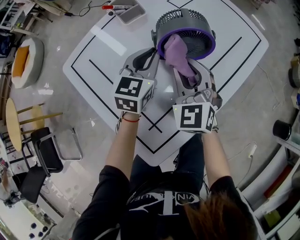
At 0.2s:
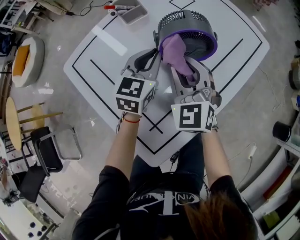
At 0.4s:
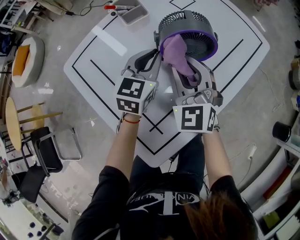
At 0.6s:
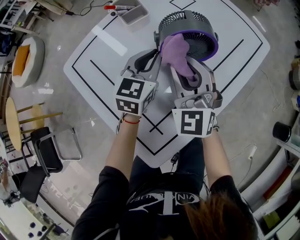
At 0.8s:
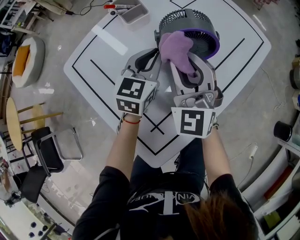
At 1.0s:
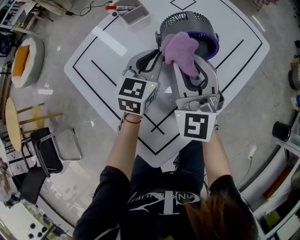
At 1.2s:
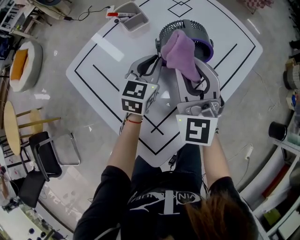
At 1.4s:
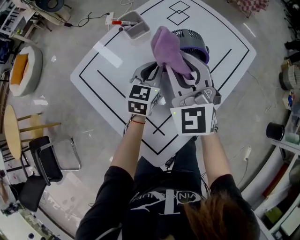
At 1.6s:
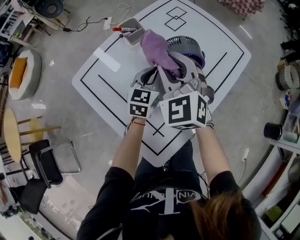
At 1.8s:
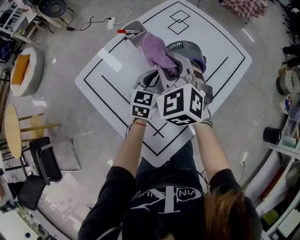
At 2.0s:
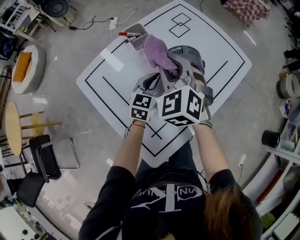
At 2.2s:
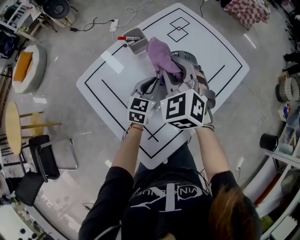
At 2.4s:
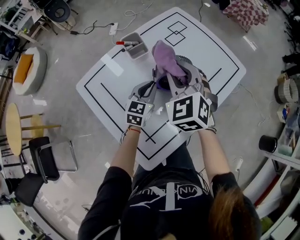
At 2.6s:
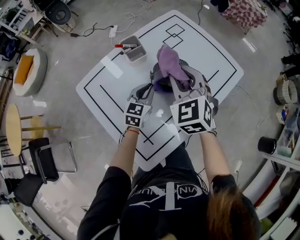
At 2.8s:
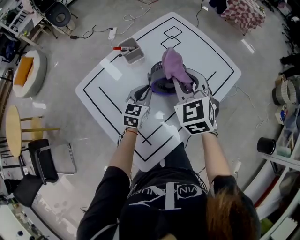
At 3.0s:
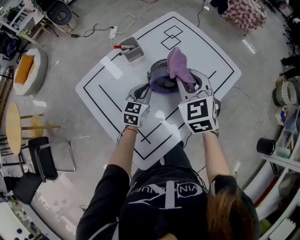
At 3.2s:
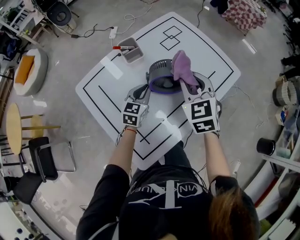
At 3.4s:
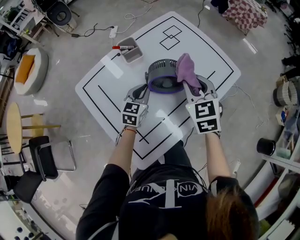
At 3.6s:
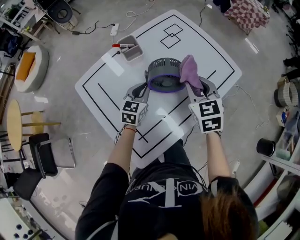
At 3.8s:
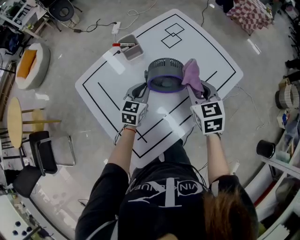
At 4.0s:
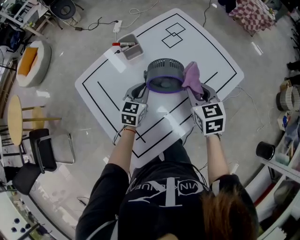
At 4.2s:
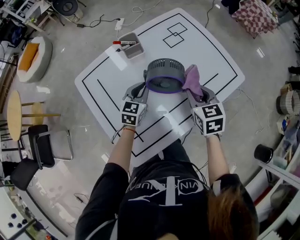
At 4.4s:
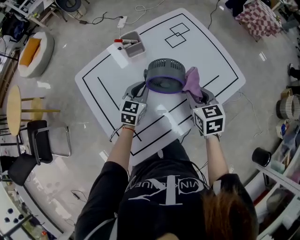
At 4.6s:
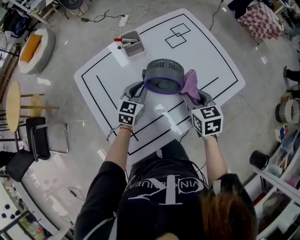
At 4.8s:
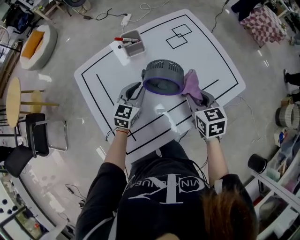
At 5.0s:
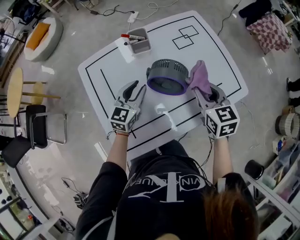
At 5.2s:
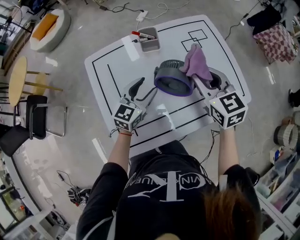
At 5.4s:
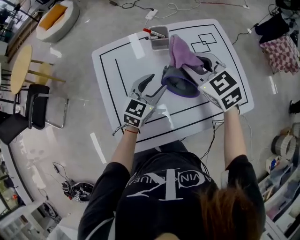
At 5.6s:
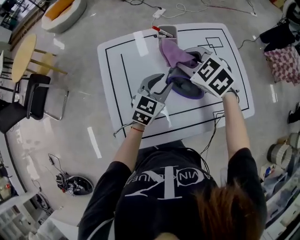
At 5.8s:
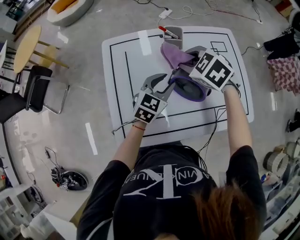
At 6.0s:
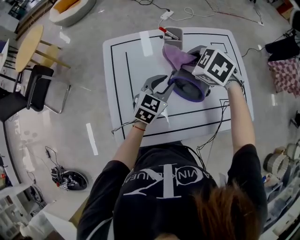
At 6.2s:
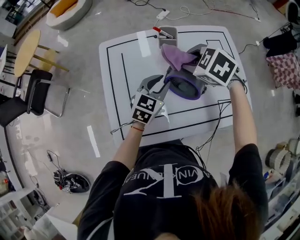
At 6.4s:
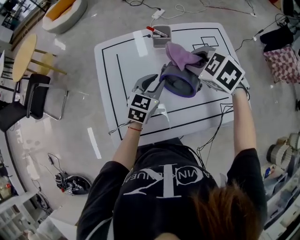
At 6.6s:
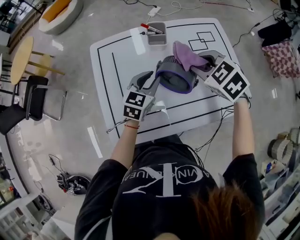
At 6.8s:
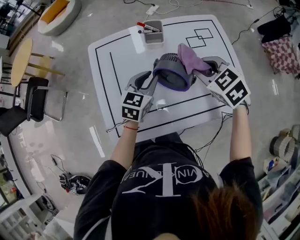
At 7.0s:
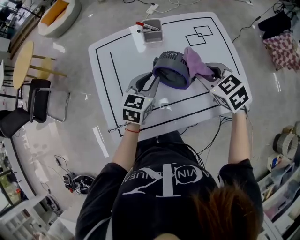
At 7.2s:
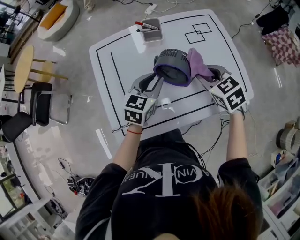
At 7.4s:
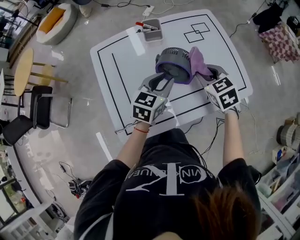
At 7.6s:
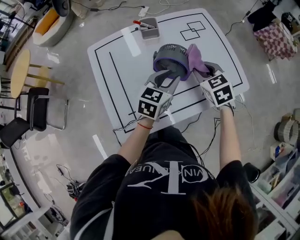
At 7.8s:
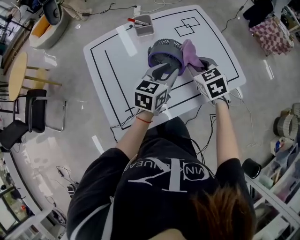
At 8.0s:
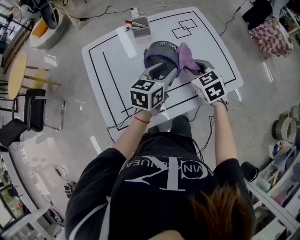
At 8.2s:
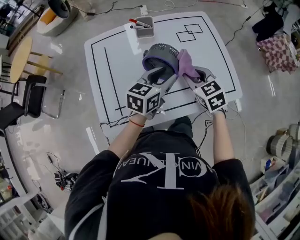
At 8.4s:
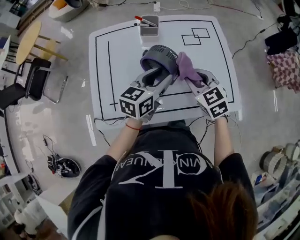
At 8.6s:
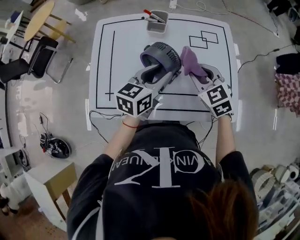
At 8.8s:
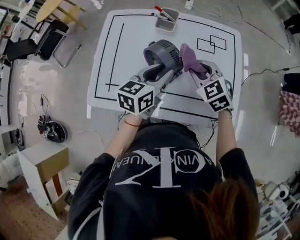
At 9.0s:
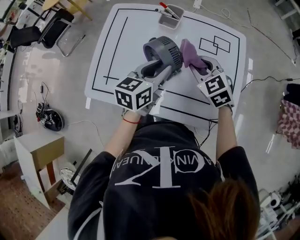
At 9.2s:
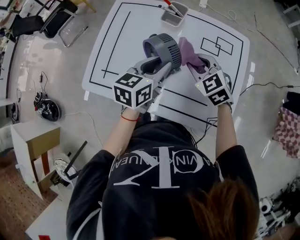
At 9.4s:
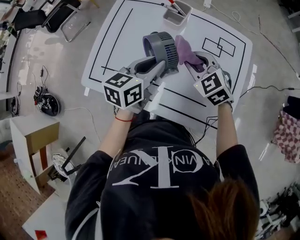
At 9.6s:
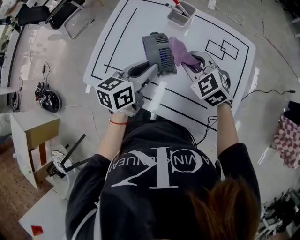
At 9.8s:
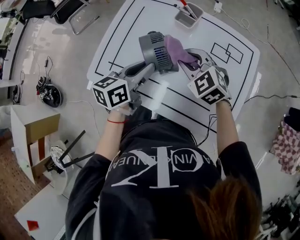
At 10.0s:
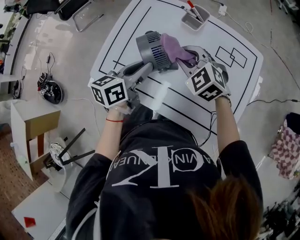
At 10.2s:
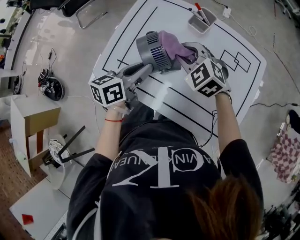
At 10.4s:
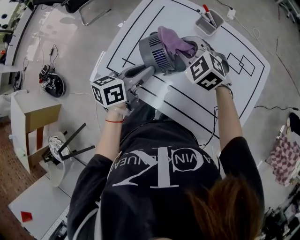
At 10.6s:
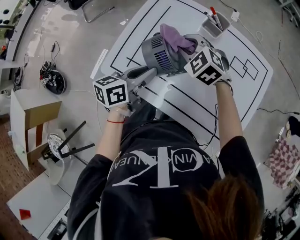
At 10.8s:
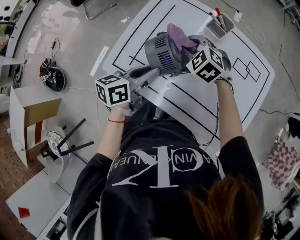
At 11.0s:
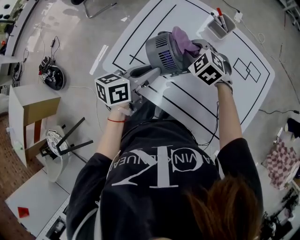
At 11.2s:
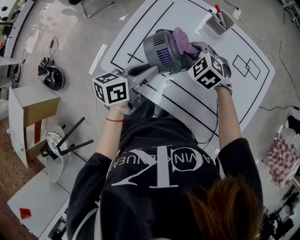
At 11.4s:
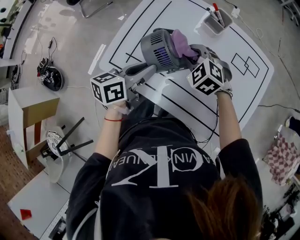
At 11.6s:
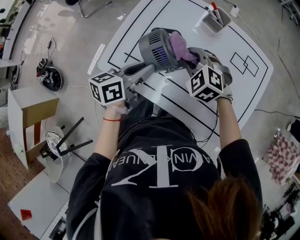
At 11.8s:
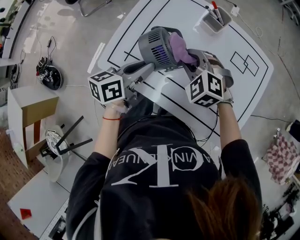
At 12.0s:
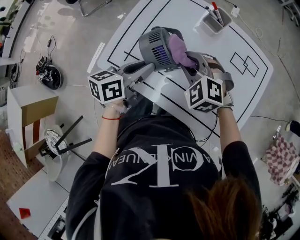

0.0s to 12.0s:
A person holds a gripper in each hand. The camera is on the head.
0.0s to 1.6s: The right gripper heads upward and to the left, covering roughly 15 cm.
1.6s to 3.0s: The right gripper heads to the right, covering about 10 cm.
3.0s to 4.4s: The right gripper goes roughly 10 cm downward and to the right, and rotates approximately 30 degrees.
4.4s to 6.0s: The right gripper ends up some 20 cm from where it was, and turns by roughly 70 degrees. The left gripper shifts approximately 5 cm upward, and opens its fingers.
6.0s to 7.6s: The left gripper is displaced to the right and backward by approximately 10 cm, while the right gripper heads to the right and backward, covering roughly 15 cm, and turns by some 40 degrees.
7.6s to 9.0s: The left gripper ends up some 5 cm from where it was, and changes its angle by some 40 degrees. The right gripper moves some 10 cm, and rotates roughly 40 degrees.
9.0s to 10.4s: The grippers both shift to the left by some 15 cm. The right gripper swivels approximately 30 degrees. The left gripper turns by some 20 degrees.
10.4s to 12.0s: The right gripper heads backward, covering some 5 cm.

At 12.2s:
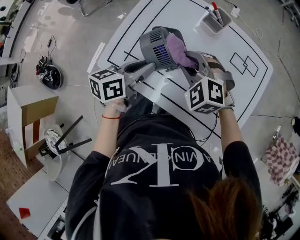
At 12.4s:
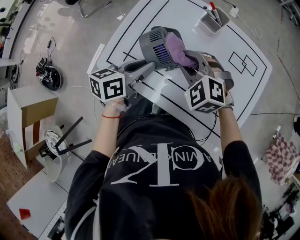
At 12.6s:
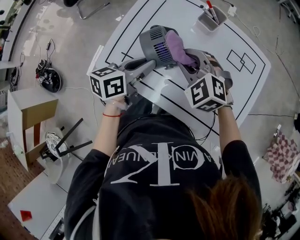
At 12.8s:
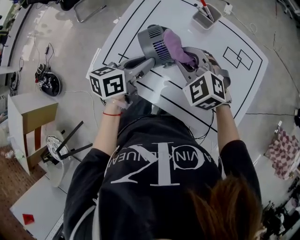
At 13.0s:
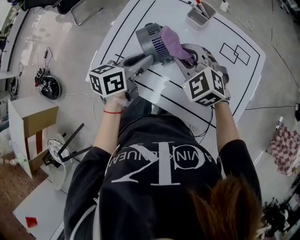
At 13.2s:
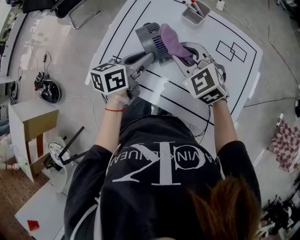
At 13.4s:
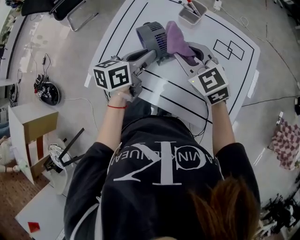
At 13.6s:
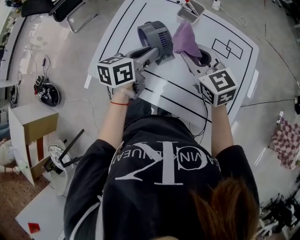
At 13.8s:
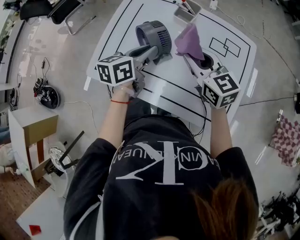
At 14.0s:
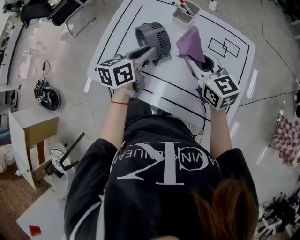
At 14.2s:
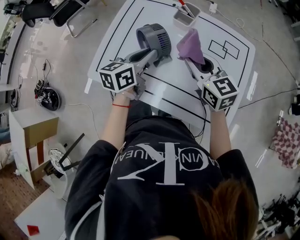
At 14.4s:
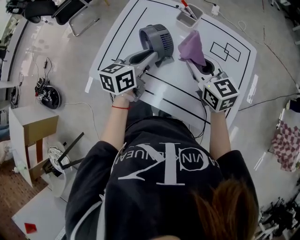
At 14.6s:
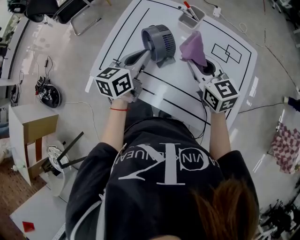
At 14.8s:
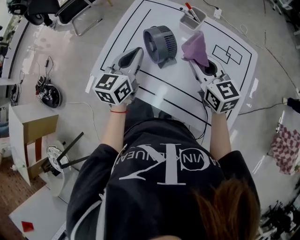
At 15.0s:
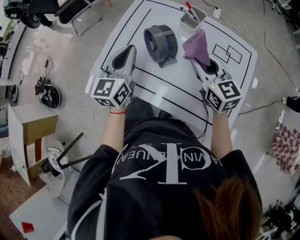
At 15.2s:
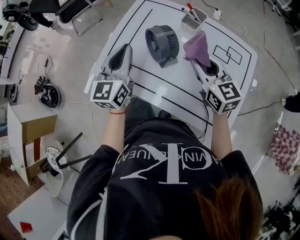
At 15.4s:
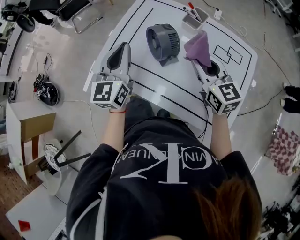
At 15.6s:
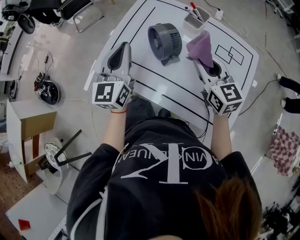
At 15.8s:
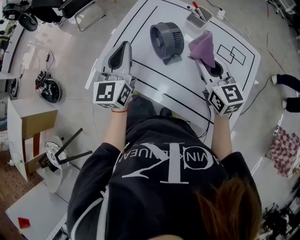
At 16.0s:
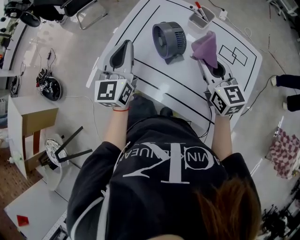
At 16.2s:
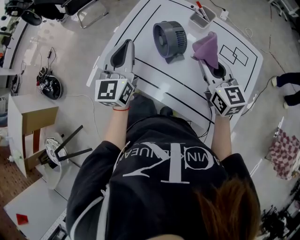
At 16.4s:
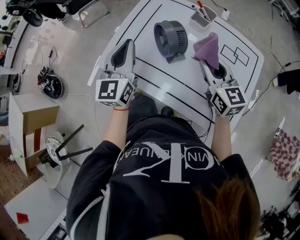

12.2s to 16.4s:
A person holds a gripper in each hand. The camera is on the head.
12.2s to 13.6s: The right gripper is displaced to the right and upward by about 10 cm, and twists about 50 degrees clockwise, seen from behind. Meanwhile the left gripper shifts roughly 10 cm to the right.
13.6s to 15.0s: The left gripper goes about 10 cm to the left and upward, and swivels about 40 degrees.
15.0s to 16.4s: There are only small adjustments of the grippers.

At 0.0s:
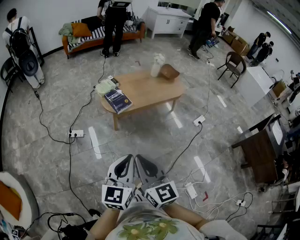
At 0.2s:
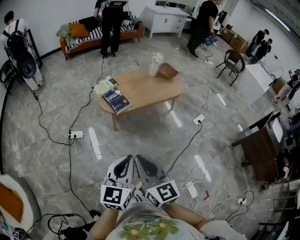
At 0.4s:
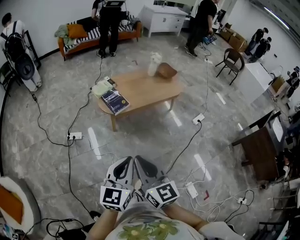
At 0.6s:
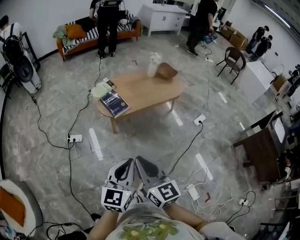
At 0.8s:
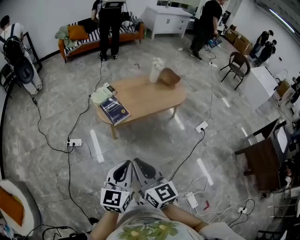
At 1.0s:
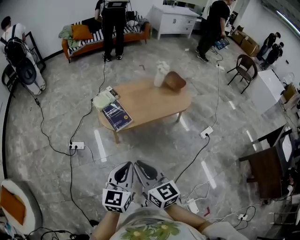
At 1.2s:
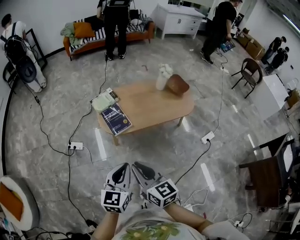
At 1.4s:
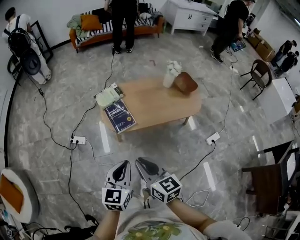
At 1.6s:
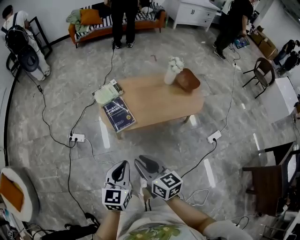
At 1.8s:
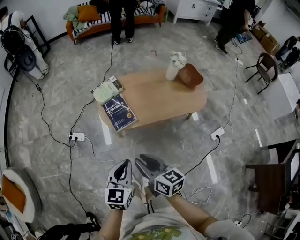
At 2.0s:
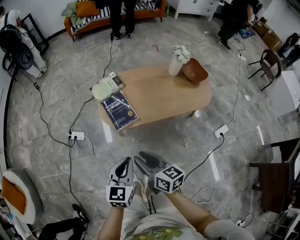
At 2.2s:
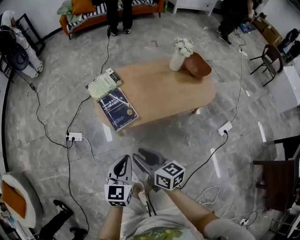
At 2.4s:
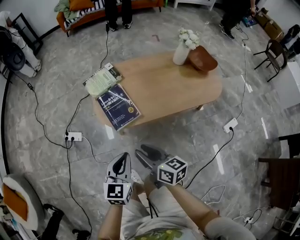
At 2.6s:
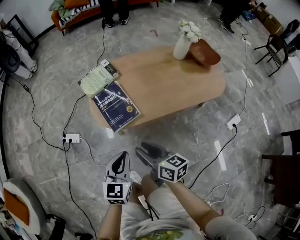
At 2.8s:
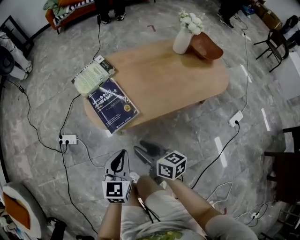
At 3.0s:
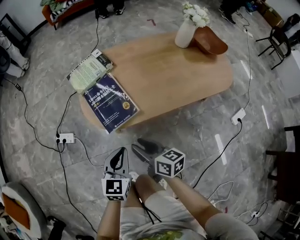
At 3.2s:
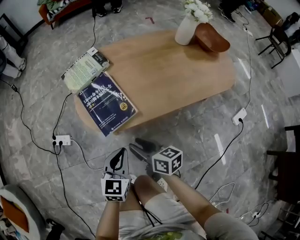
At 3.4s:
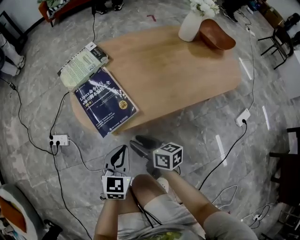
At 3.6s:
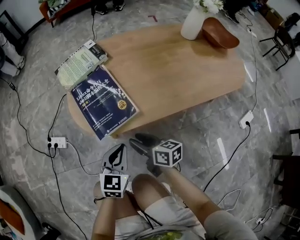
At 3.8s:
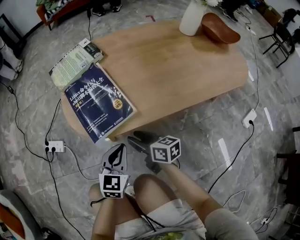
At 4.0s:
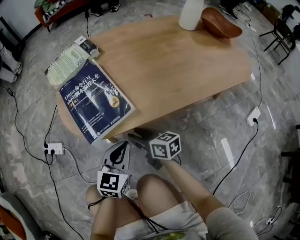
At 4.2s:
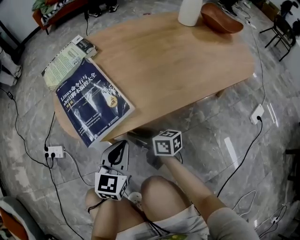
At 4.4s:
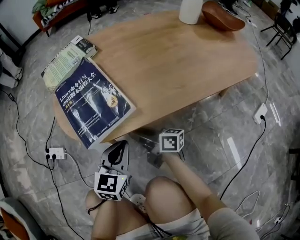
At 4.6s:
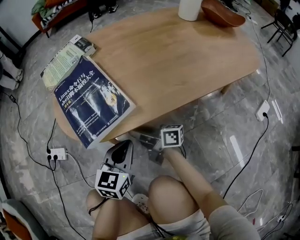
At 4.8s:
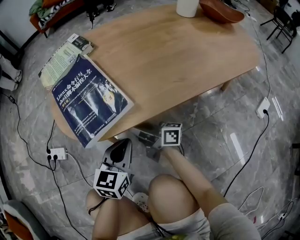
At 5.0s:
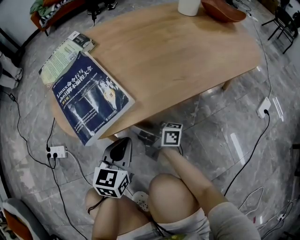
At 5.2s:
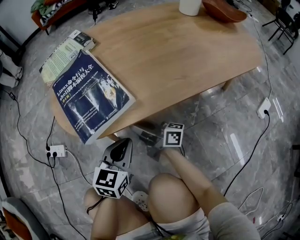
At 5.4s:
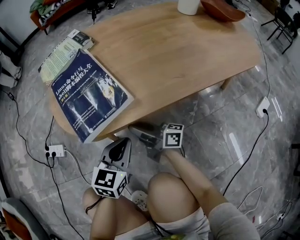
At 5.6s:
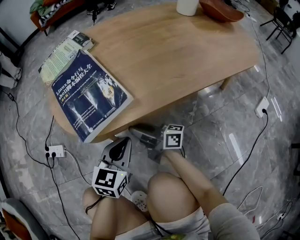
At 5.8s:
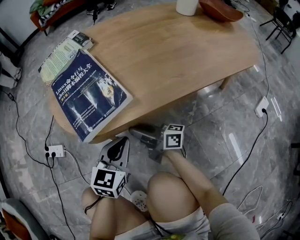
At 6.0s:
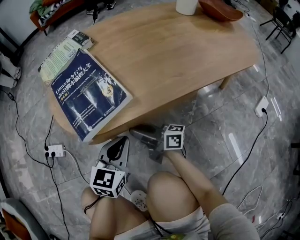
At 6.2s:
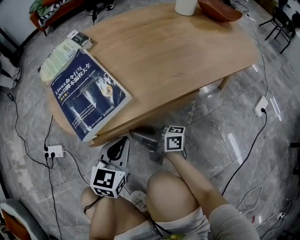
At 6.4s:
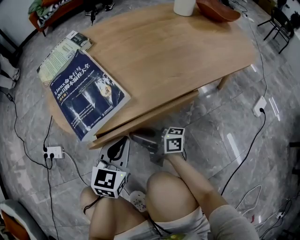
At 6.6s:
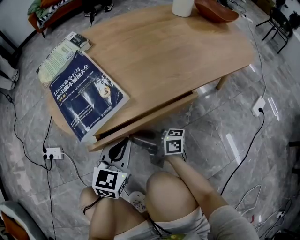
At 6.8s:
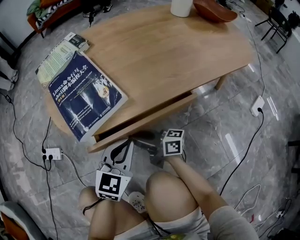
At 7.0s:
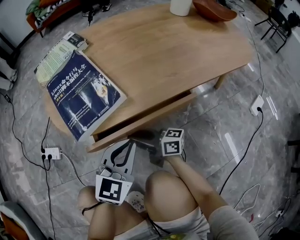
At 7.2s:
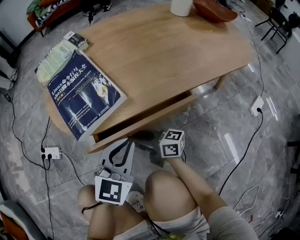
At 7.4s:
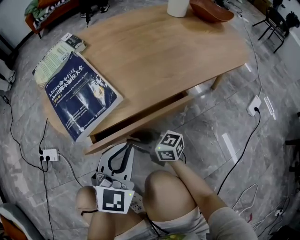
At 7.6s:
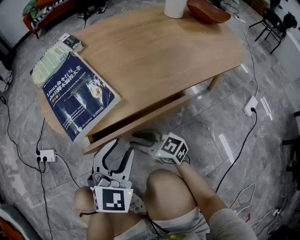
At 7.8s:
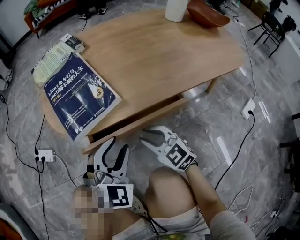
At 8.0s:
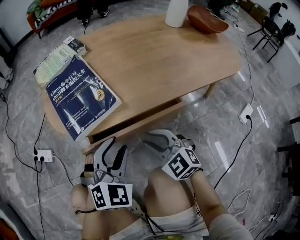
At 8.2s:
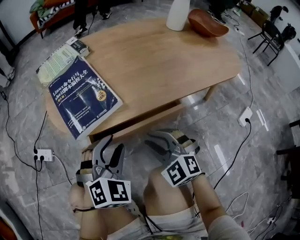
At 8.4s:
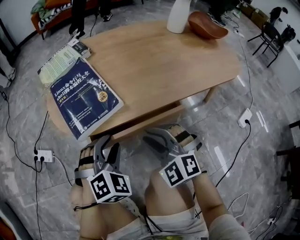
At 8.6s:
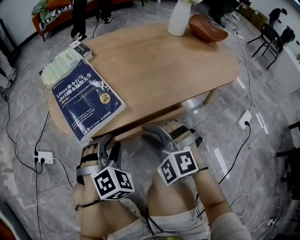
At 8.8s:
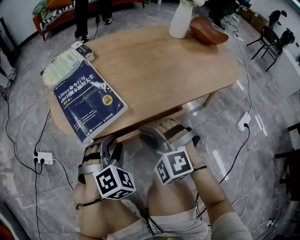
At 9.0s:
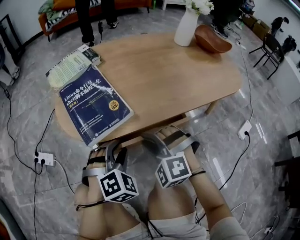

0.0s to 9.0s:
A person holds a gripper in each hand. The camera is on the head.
0.0s to 1.6s: The grippers both shift forward and downward by roughly 30 cm. The right gripper changes its angle by approximately 30 degrees.
1.6s to 3.0s: Both grippers move downward and forward, about 40 cm.
3.0s to 4.4s: The left gripper moves downward, approximately 20 cm. The right gripper heads downward and forward, covering about 25 cm, and rotates approximately 20 degrees.
4.4s to 6.0s: The grippers make only small movements.
6.0s to 7.6s: The left gripper travels upward by approximately 5 cm, swivels about 30 degrees, and opens its fingers, while the right gripper goes roughly 5 cm backward, and changes its angle by some 50 degrees.
7.6s to 9.0s: The left gripper moves about 5 cm, and swivels approximately 30 degrees. Meanwhile the right gripper moves upward, roughly 10 cm, and twists approximately 60 degrees counterclockwise, seen from behind.
